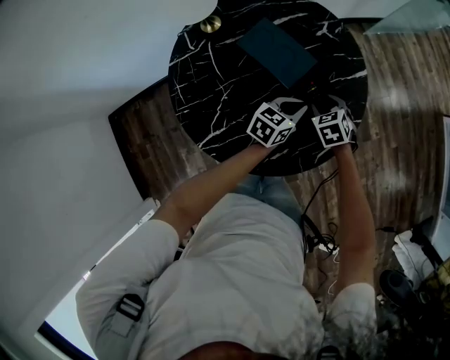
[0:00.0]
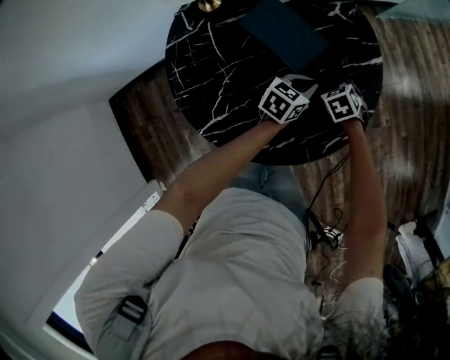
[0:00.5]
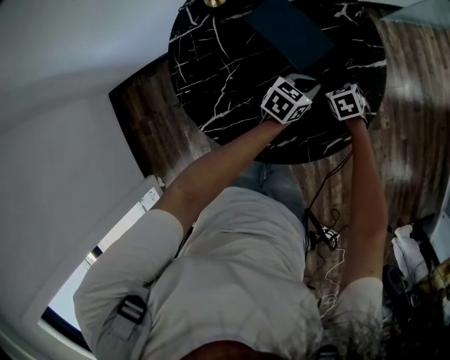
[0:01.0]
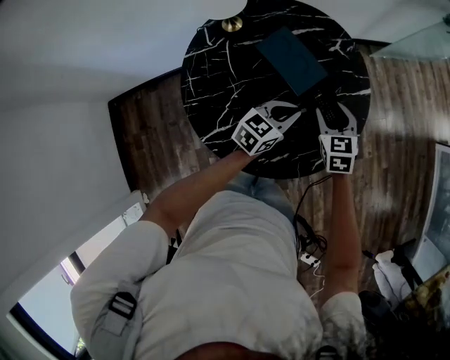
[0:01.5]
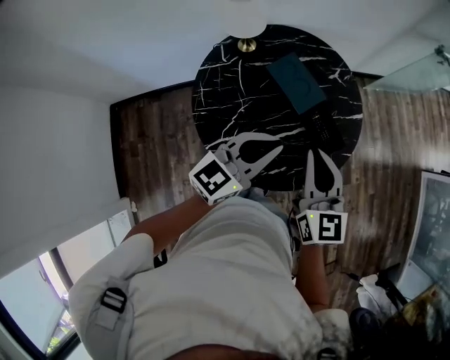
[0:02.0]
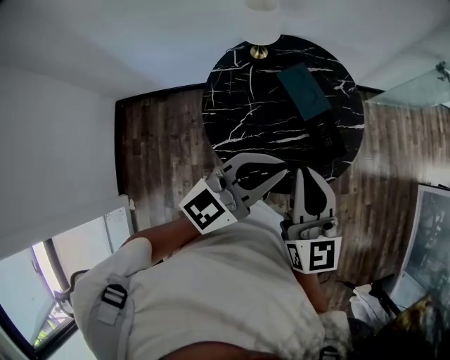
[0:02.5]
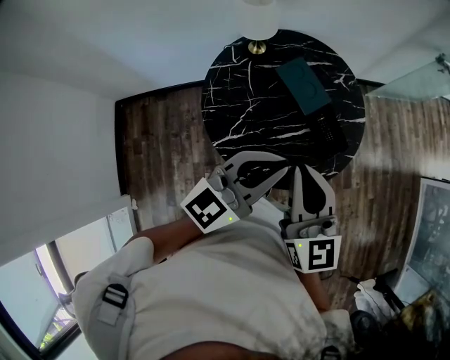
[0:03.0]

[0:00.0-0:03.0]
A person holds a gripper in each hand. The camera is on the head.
0:00.0 to 0:01.5: The left gripper shifts roughly 5 cm upward. Meanwhile the right gripper moves upward, some 10 cm, and changes its angle by some 20 degrees.
0:01.5 to 0:03.0: Both grippers travel together upward and backward, some 35 cm. The right gripper tips its fingers upward by about 30 degrees, and closes; the left gripper turns by approximately 30 degrees.

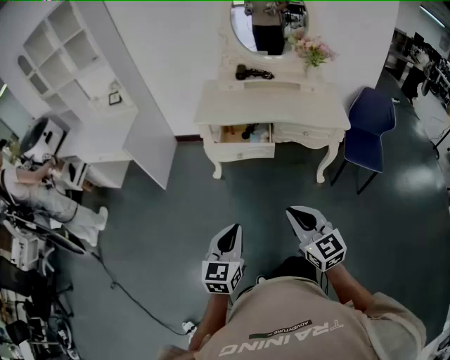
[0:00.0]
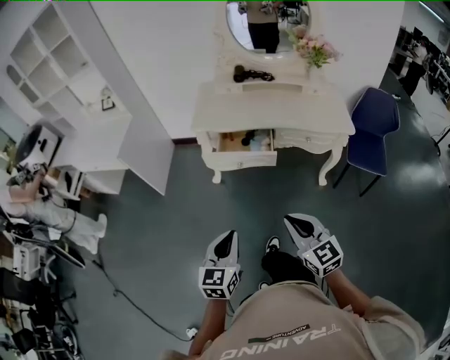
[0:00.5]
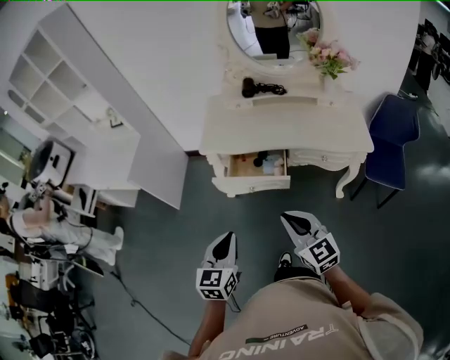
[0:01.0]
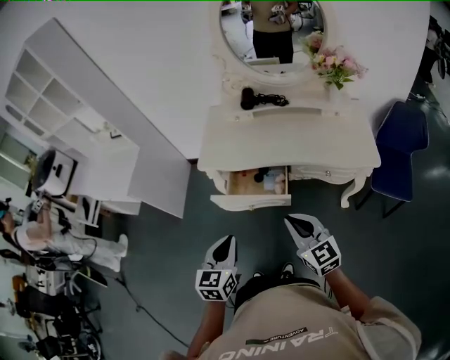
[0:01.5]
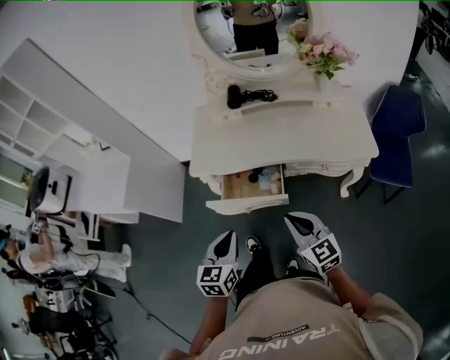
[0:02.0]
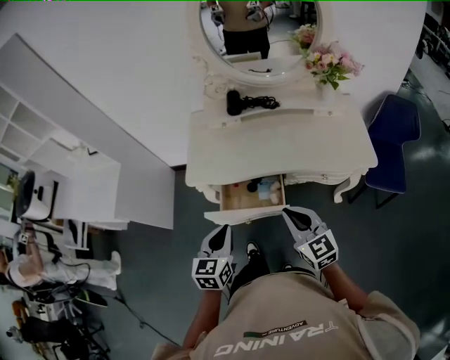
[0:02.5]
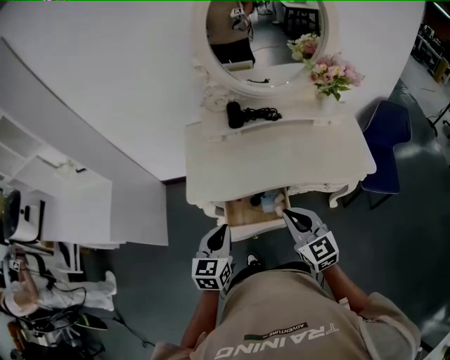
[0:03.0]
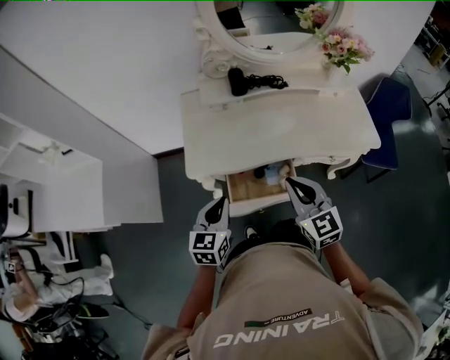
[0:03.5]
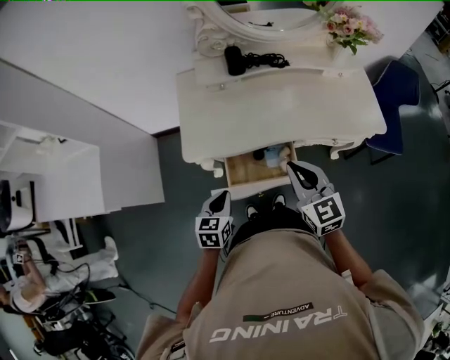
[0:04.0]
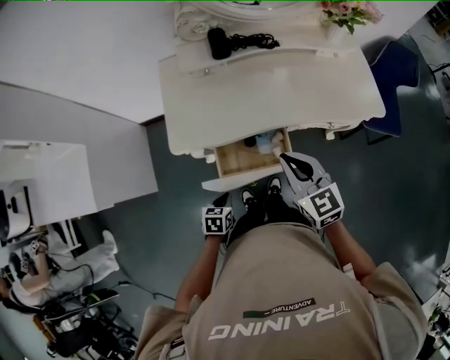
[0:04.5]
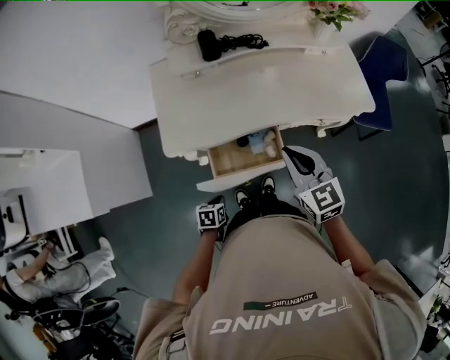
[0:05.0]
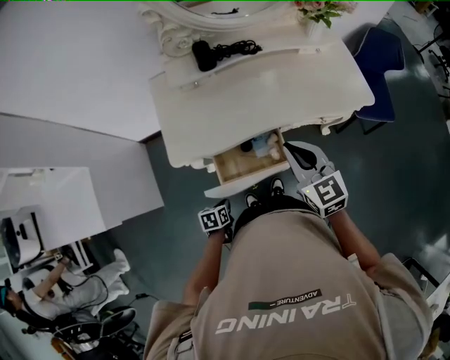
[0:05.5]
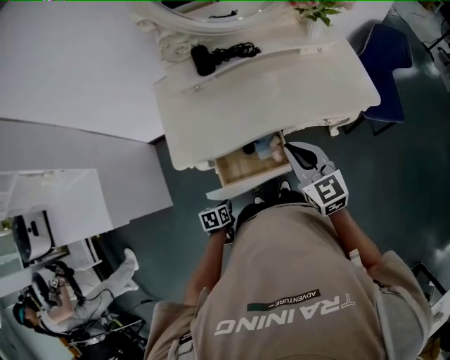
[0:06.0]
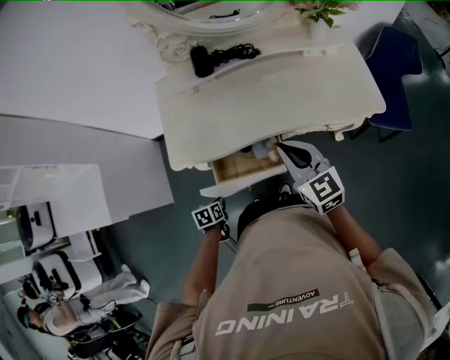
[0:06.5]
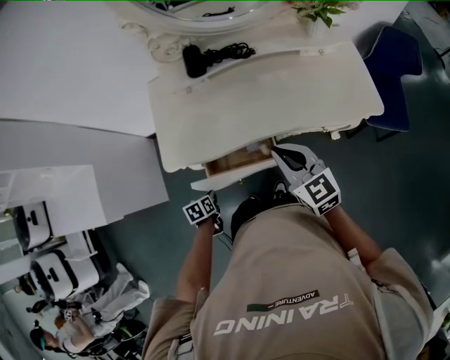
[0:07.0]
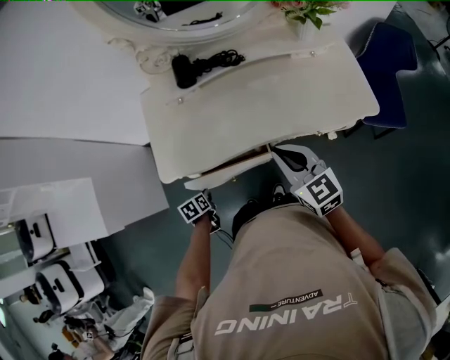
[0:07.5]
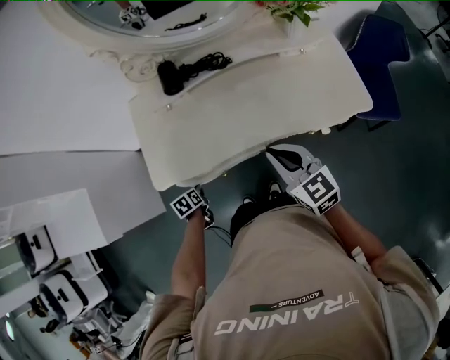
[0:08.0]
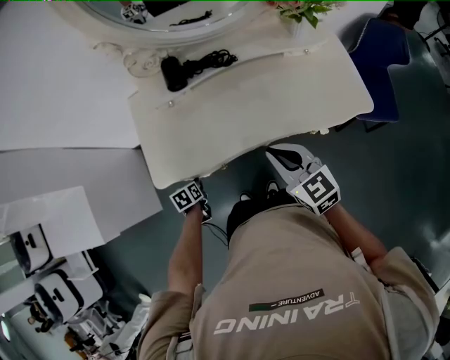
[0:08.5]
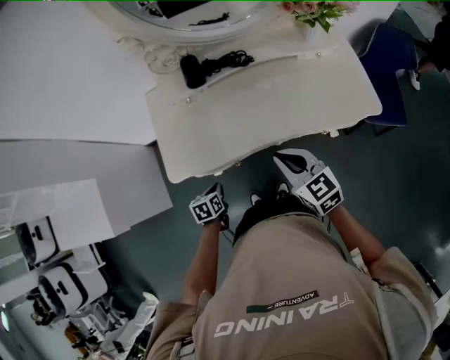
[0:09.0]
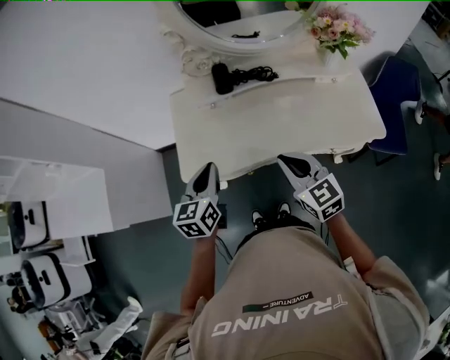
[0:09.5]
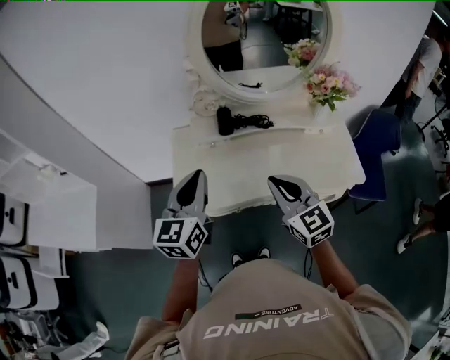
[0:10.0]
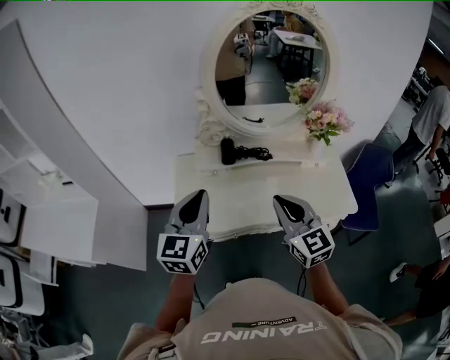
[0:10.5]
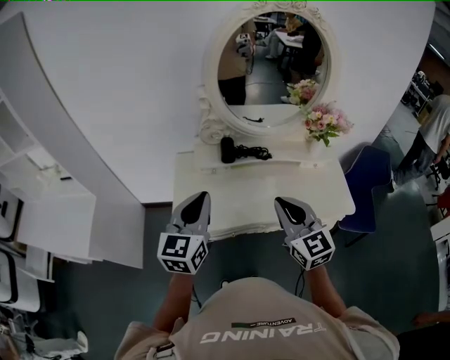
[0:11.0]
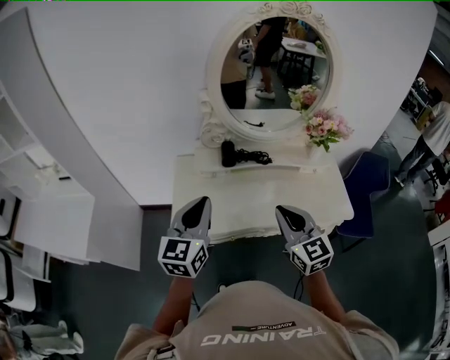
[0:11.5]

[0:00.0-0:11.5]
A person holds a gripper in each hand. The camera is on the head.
0:00.0 to 0:02.0: Both grippers travel together forward, about 35 cm.
0:02.0 to 0:04.0: The left gripper shifts about 25 cm forward, downward and to the left, while the right gripper is displaced forward and to the left by some 20 cm.
0:04.0 to 0:06.0: The left gripper shifts about 20 cm downward, and rotates approximately 30 degrees, while the right gripper moves roughly 5 cm.
0:06.0 to 0:07.5: The right gripper changes place by roughly 5 cm. Meanwhile the left gripper travels forward by about 10 cm.
0:07.5 to 0:09.5: The right gripper shifts some 5 cm to the left; the left gripper moves upward, some 30 cm, and tilts its fingers about 40 degrees upward.
0:09.5 to 0:11.5: Both grippers move upward, about 15 cm. The left gripper changes its angle by roughly 20 degrees.

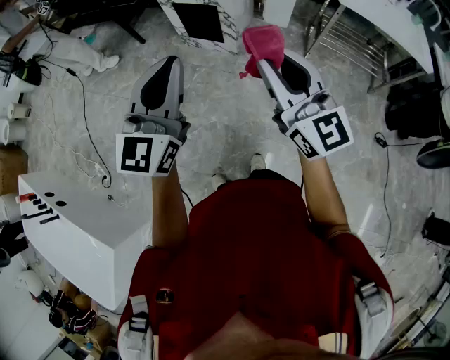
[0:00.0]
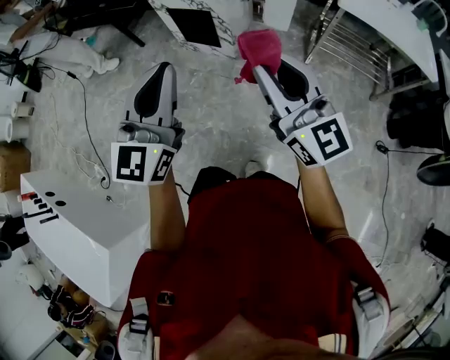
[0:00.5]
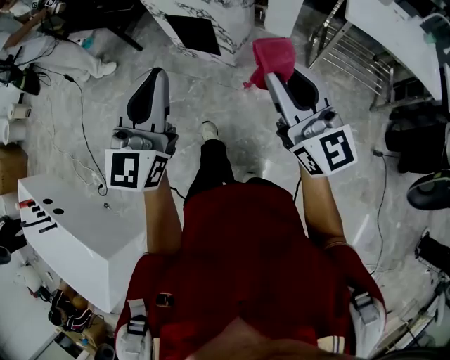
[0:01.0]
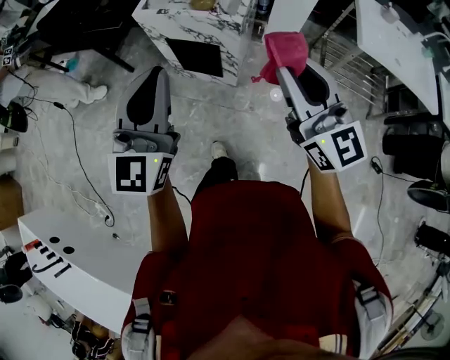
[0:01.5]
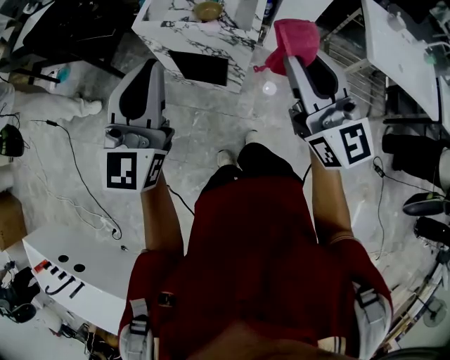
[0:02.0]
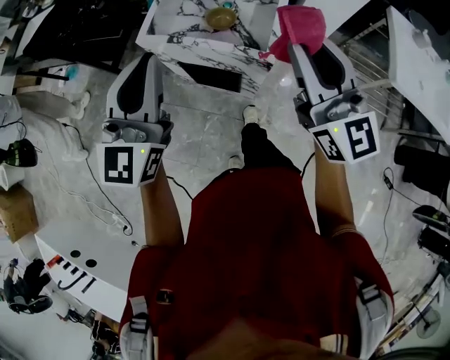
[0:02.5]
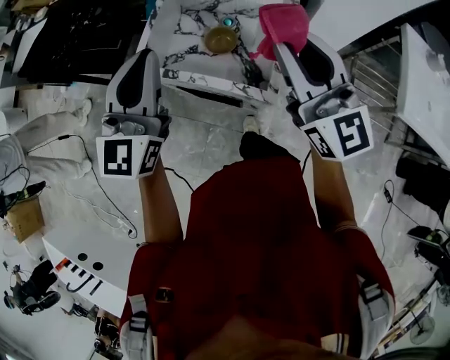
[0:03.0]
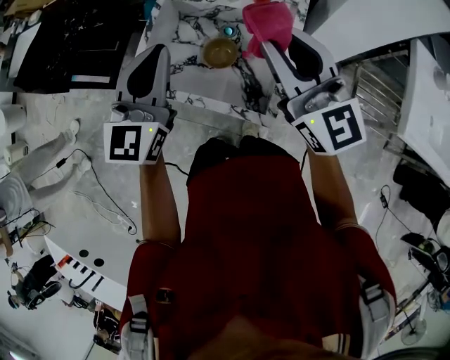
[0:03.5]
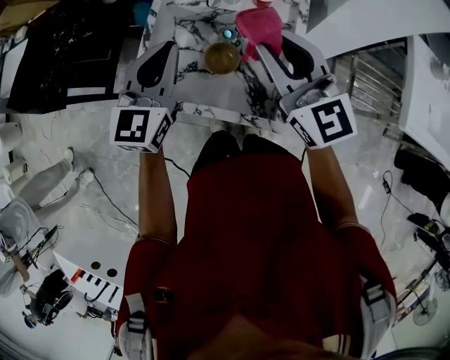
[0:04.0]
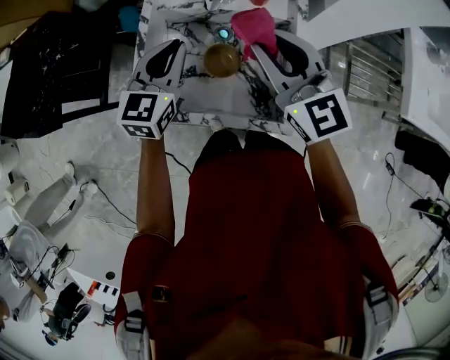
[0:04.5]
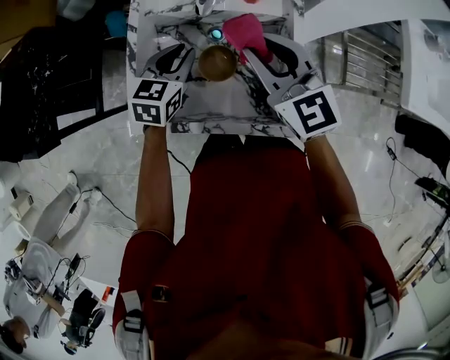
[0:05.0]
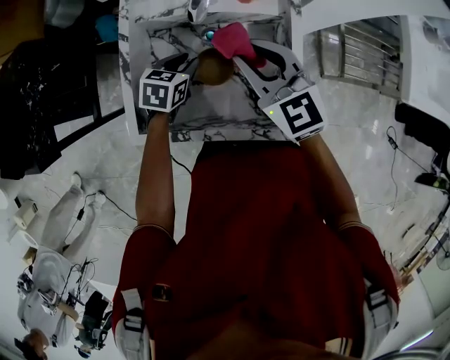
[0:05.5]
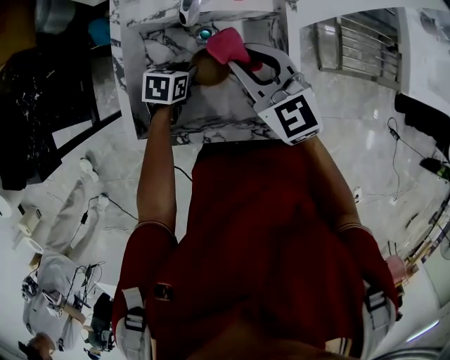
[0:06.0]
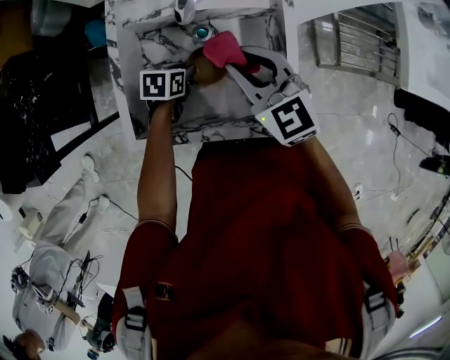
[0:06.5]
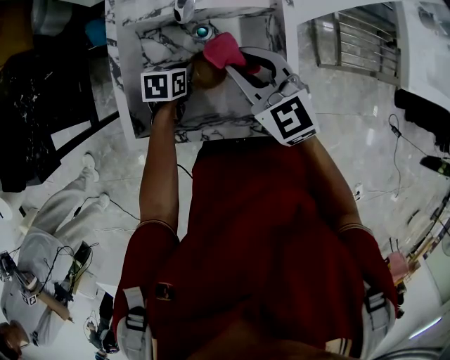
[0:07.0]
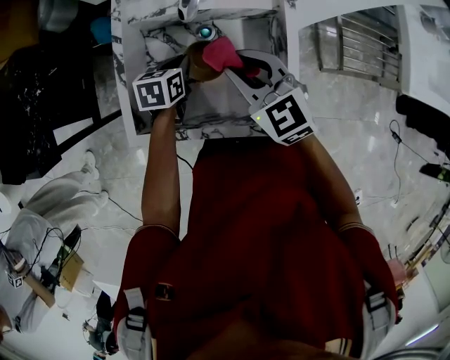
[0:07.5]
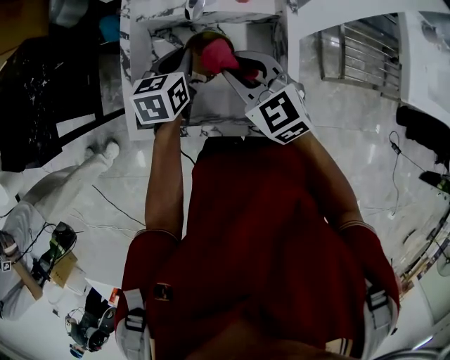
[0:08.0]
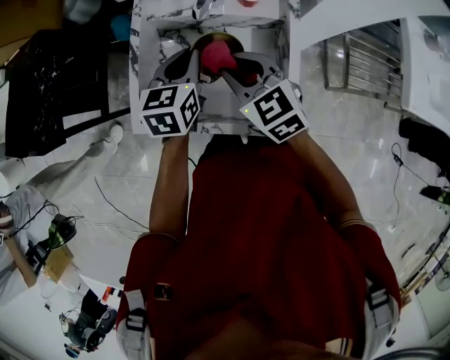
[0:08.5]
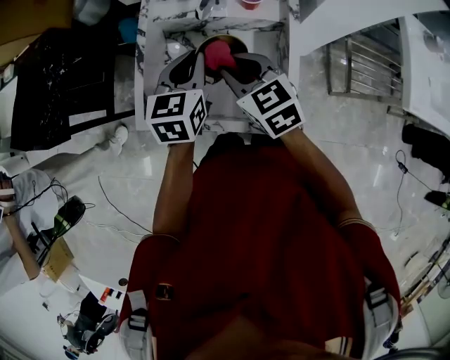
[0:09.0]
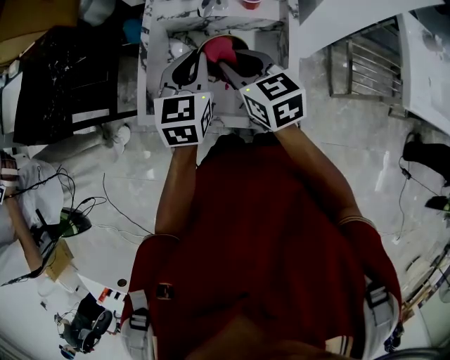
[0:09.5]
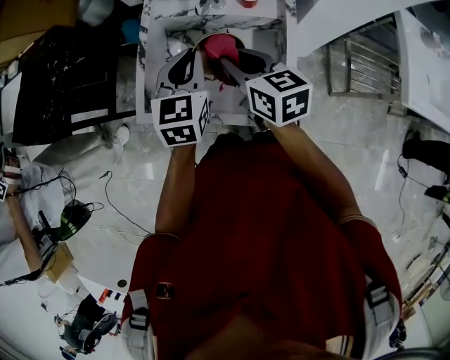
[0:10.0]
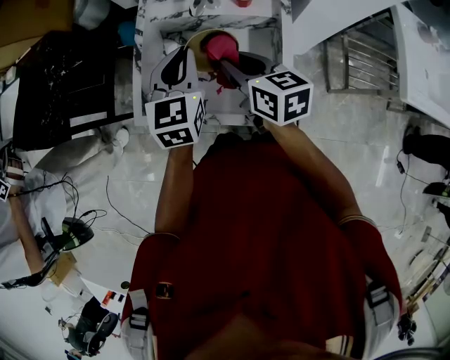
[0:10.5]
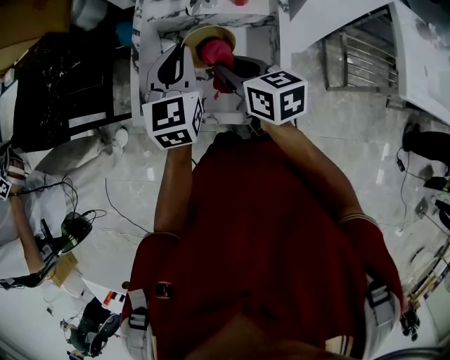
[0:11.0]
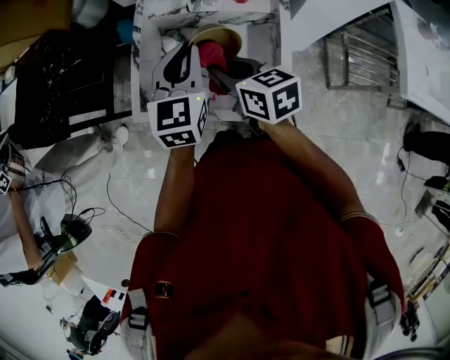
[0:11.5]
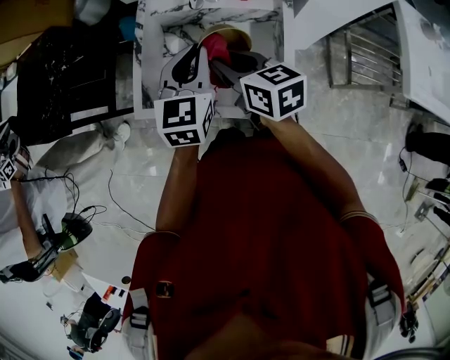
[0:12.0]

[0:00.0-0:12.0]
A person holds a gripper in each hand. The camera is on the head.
0:00.0 to 0:02.0: Both grippers are carried forward, some 40 cm.
0:02.0 to 0:04.0: The two grippers travel together, forward, about 40 cm. The left gripper rotates some 20 degrees.
0:04.0 to 0:06.0: The right gripper heads downward, covering about 15 cm, and changes its angle by about 20 degrees, while the left gripper travels downward by about 30 cm, tilts its fingers about 40 degrees downward, and opens its fingers.
0:06.0 to 0:08.0: The left gripper shifts some 15 cm upward, and turns by roughly 30 degrees.
0:08.0 to 0:10.0: The right gripper changes its angle by some 30 degrees, while the left gripper travels upward and backward by roughly 15 cm, and turns by some 30 degrees.
0:10.0 to 0:12.0: The grippers stay close to where they were, moving slightly.
